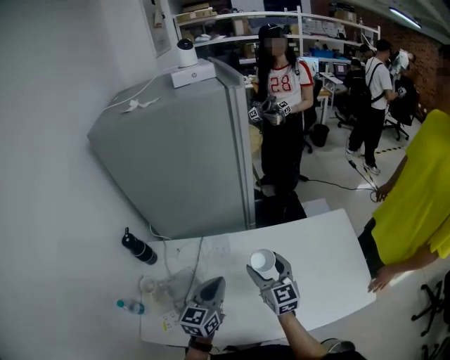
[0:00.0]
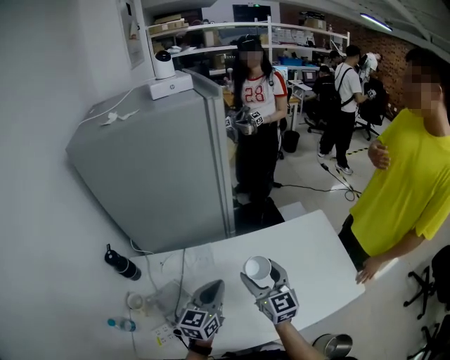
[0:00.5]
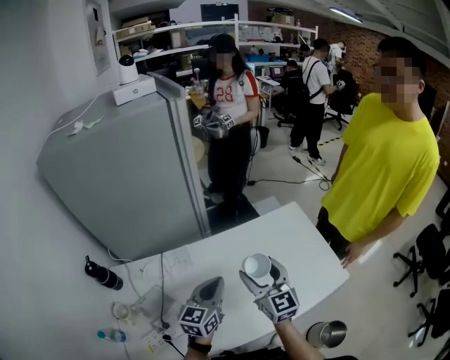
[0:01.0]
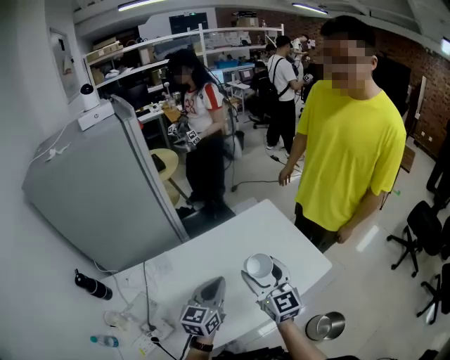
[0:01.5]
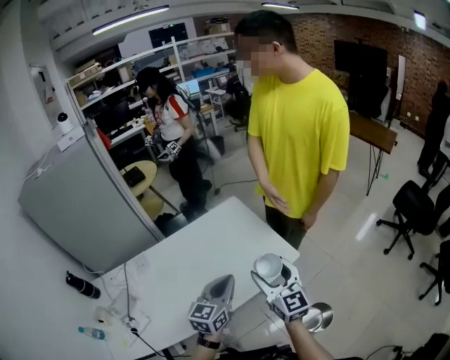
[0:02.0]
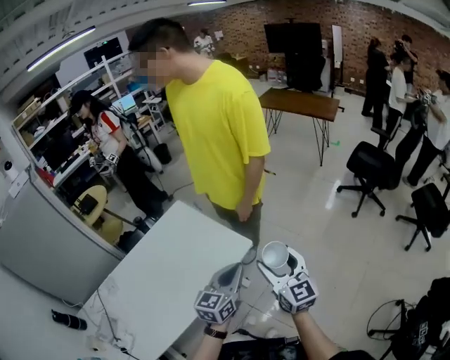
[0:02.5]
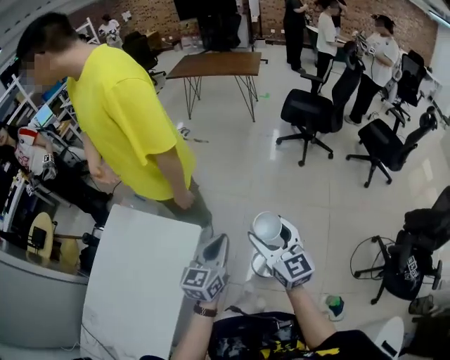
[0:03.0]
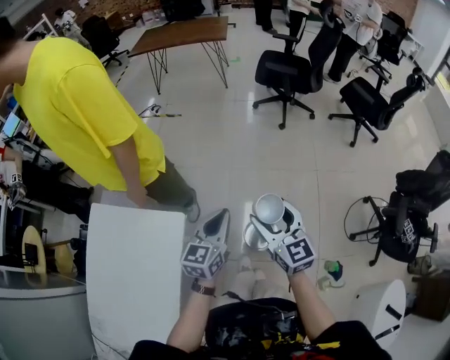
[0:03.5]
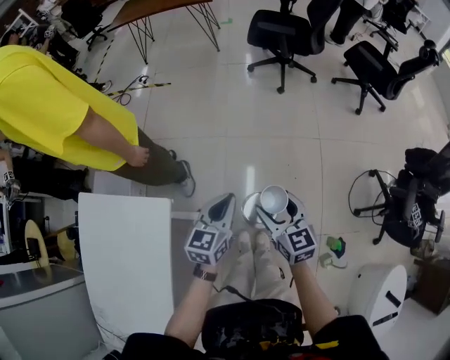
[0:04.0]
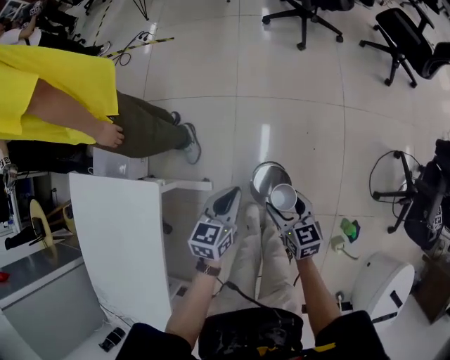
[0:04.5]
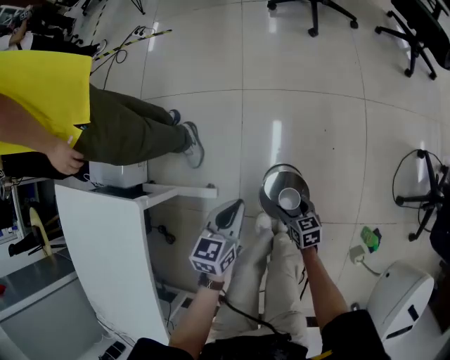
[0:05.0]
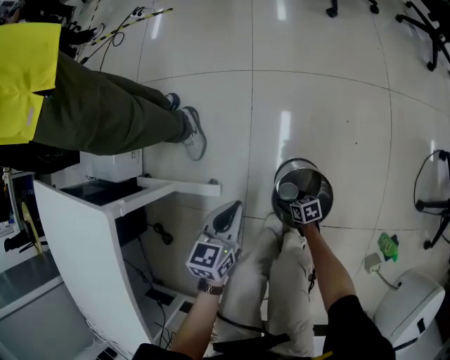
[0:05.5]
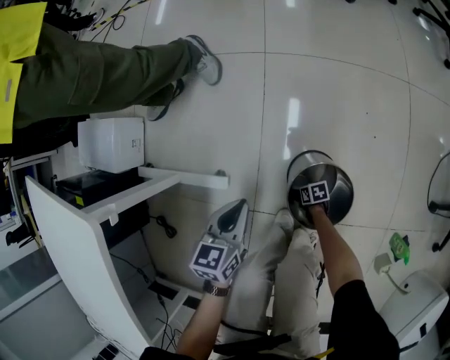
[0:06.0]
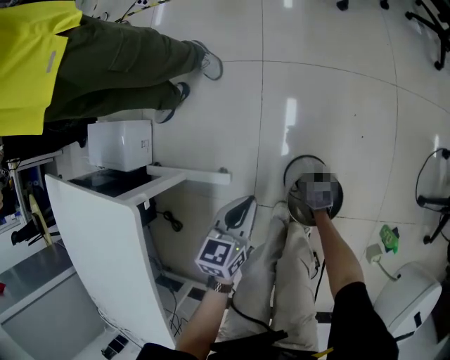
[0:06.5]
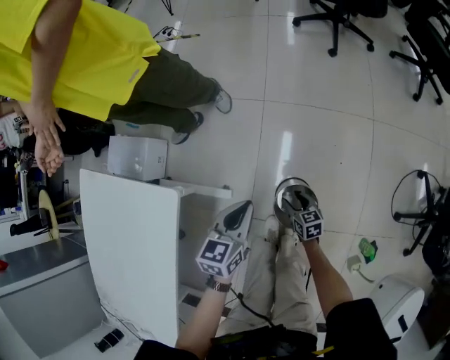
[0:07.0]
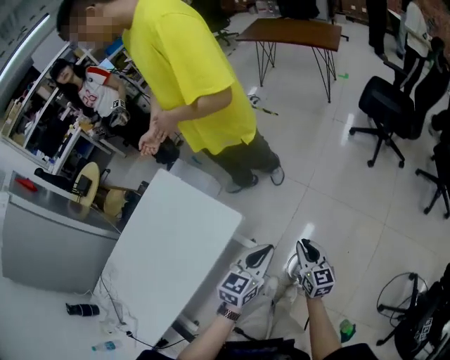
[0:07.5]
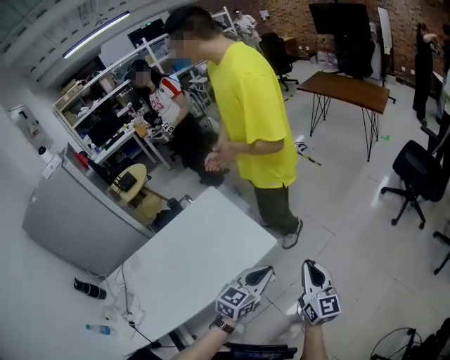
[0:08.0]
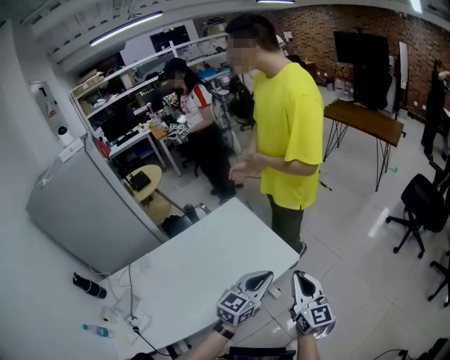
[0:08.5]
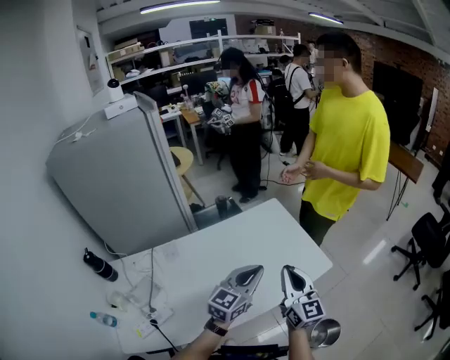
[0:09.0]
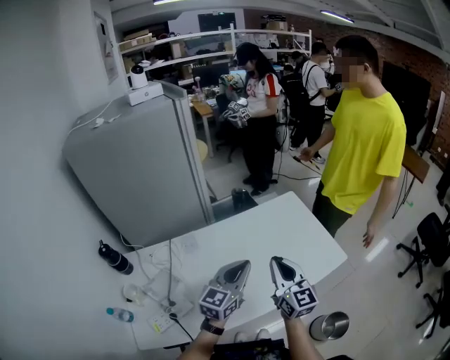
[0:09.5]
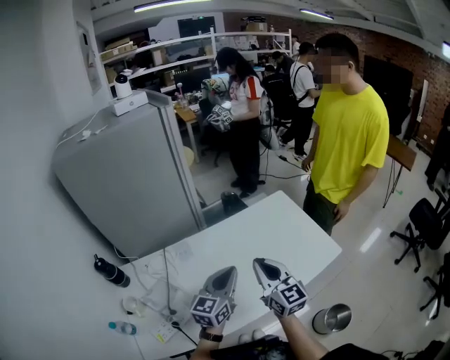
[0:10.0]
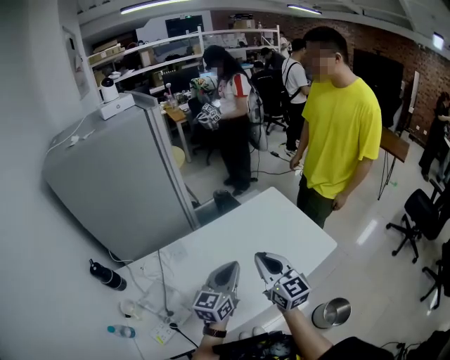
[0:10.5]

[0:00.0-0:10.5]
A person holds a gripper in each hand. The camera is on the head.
0:00.0 to 0:02.0: Both grippers are carried about 40 cm. The right gripper changes its angle by some 30 degrees, while the left gripper rotates some 30 degrees.
0:02.0 to 0:04.0: Both grippers are carried roughly 50 cm. The left gripper rotates about 60 degrees, while the right gripper turns by some 60 degrees.
0:04.0 to 0:06.5: The left gripper moves downward, roughly 40 cm, while the right gripper heads downward, covering about 70 cm, and points its fingers roughly 40 degrees further downward.
0:06.5 to 0:08.5: The left gripper moves upward, some 50 cm, and swivels approximately 40 degrees. Meanwhile the right gripper is displaced upward by approximately 90 cm, points its fingers about 70 degrees further upward, and closes up.
0:08.5 to 0:10.5: Both grippers are carried about 40 cm. The left gripper changes its angle by some 30 degrees. The right gripper swivels some 20 degrees.

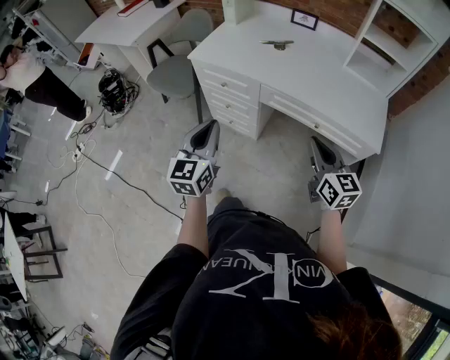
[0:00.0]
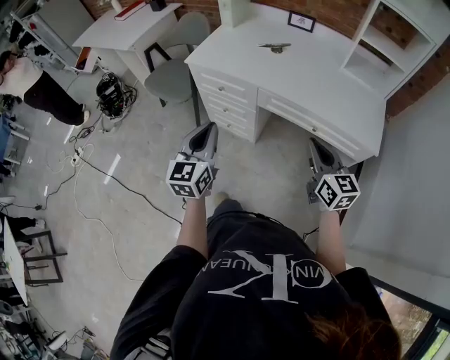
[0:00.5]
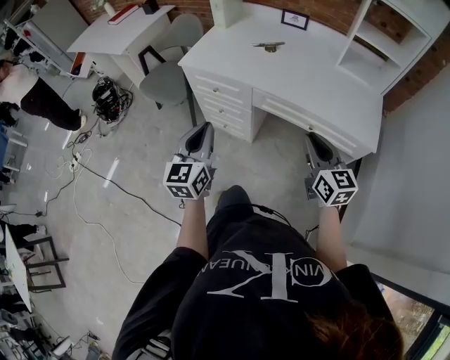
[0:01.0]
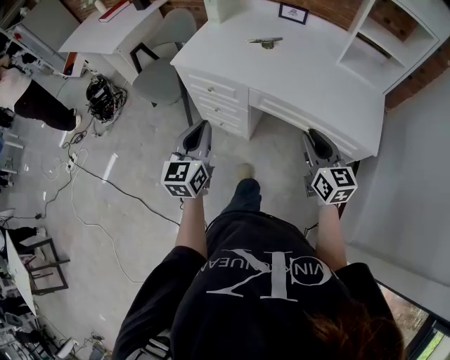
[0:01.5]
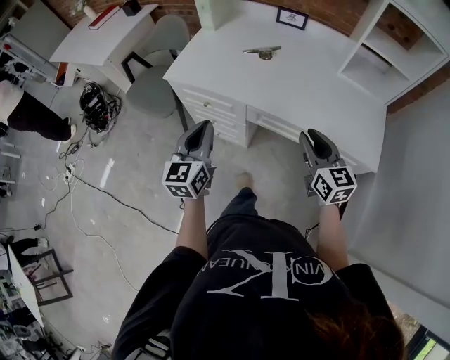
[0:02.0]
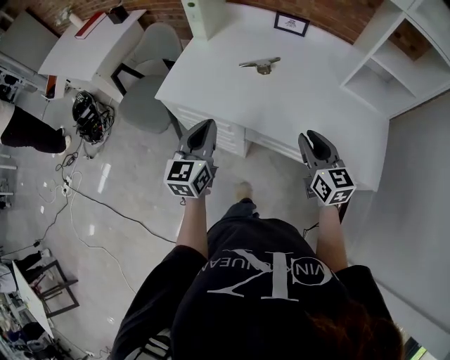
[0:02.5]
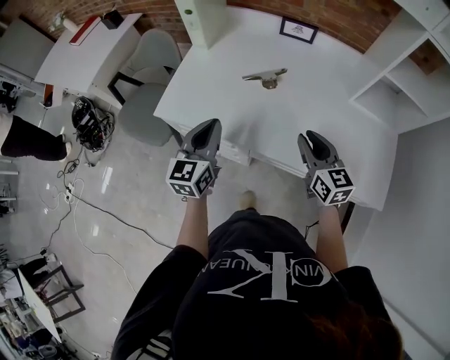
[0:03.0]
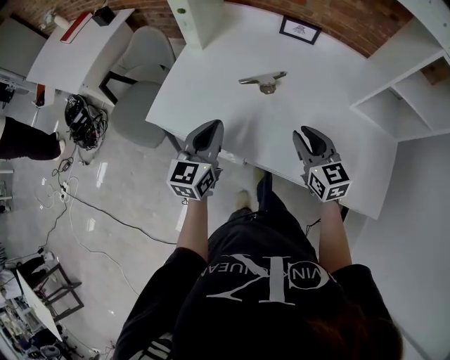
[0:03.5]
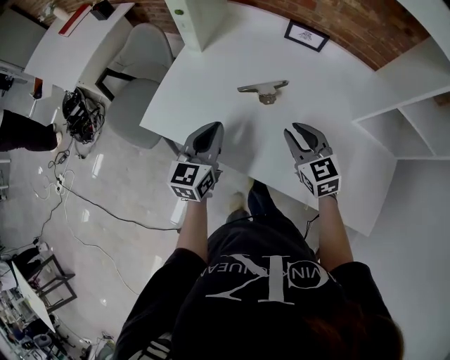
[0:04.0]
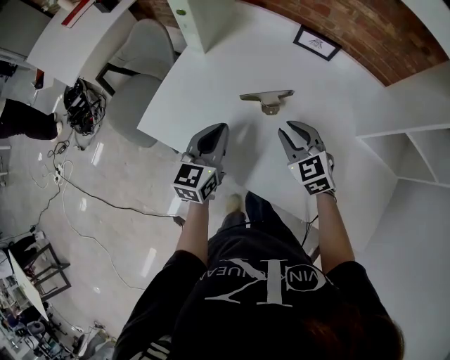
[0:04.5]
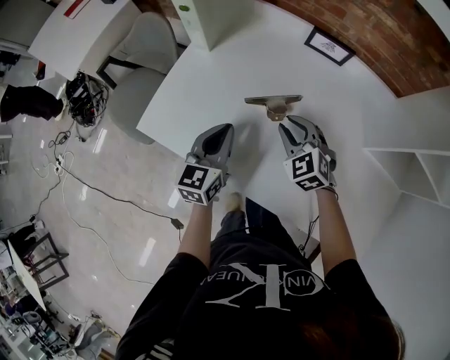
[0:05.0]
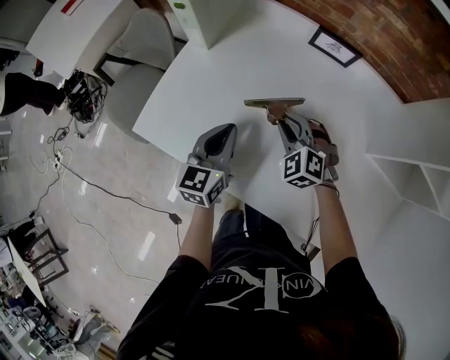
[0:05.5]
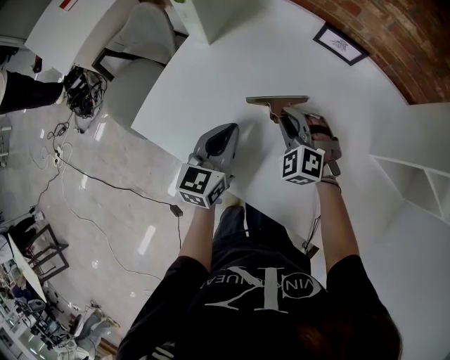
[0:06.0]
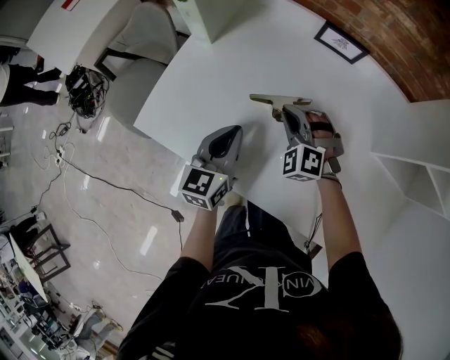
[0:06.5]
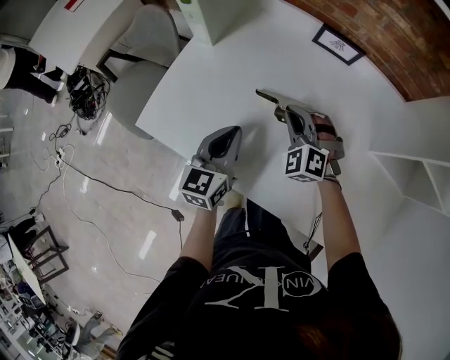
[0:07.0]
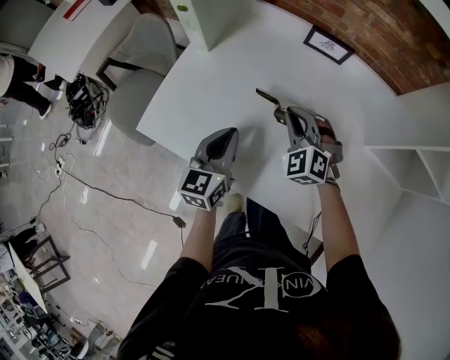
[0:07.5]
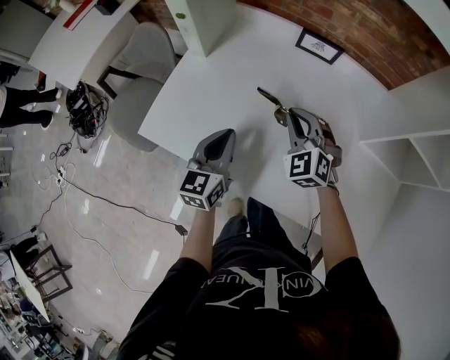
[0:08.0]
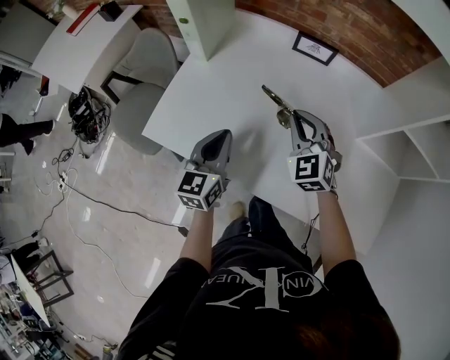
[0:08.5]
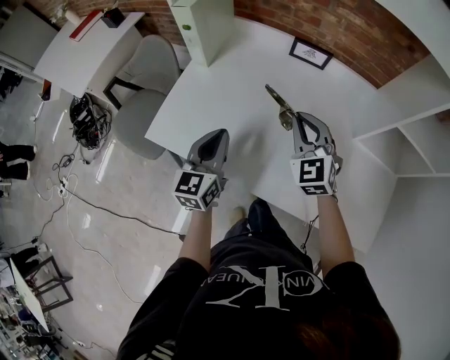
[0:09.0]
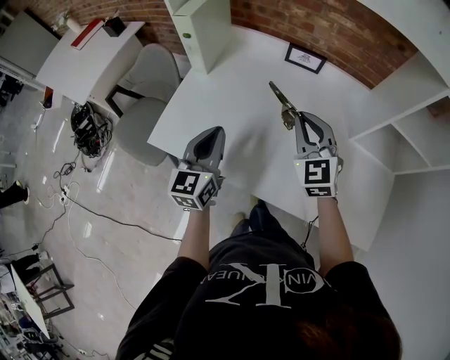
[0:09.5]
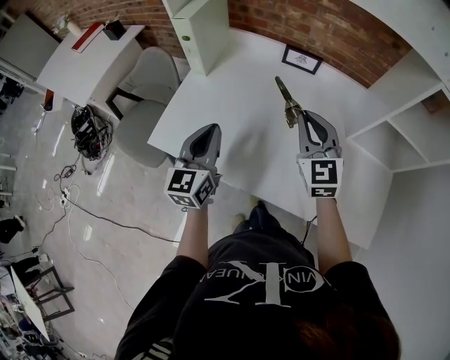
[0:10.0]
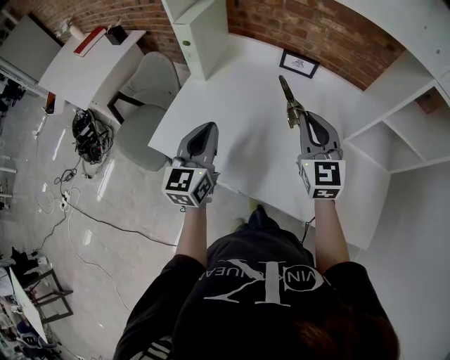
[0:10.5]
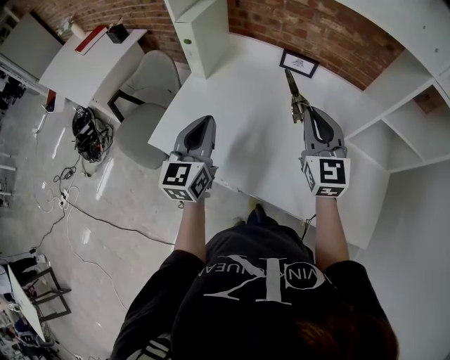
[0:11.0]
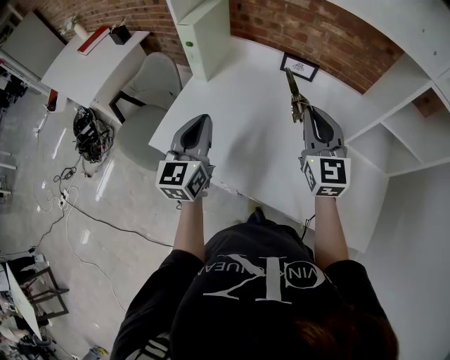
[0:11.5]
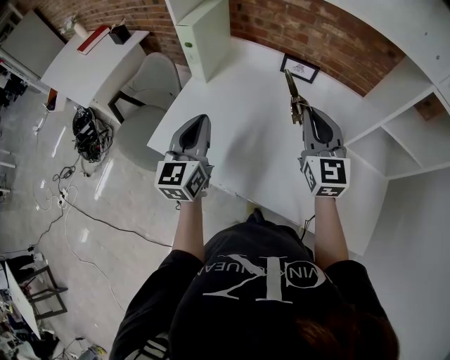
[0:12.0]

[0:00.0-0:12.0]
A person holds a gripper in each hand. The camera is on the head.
0:00.0 to 0:02.0: The two grippers go approximately 15 cm forward.
0:02.0 to 0:04.0: Both grippers move forward, about 30 cm. The right gripper rotates approximately 20 degrees.
0:04.0 to 0:06.0: The right gripper goes some 15 cm forward and downward, and twists roughly 50 degrees counterclockwise, seen from behind; the left gripper travels forward by roughly 5 cm.
0:06.0 to 0:08.0: The left gripper shifts by roughly 5 cm, while the right gripper travels upward by some 10 cm, and rotates some 20 degrees.
0:08.0 to 0:10.0: The left gripper shifts approximately 10 cm upward. The right gripper heads upward and backward, covering roughly 15 cm, and swivels about 30 degrees.
0:10.0 to 0:12.0: The grippers stay close to where they were, moving slightly.

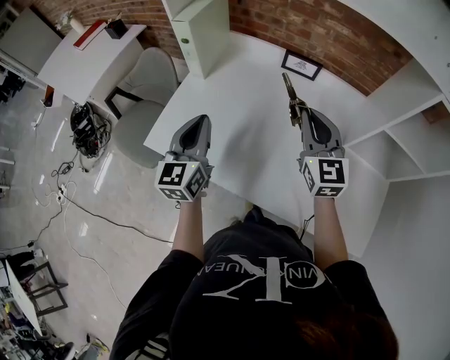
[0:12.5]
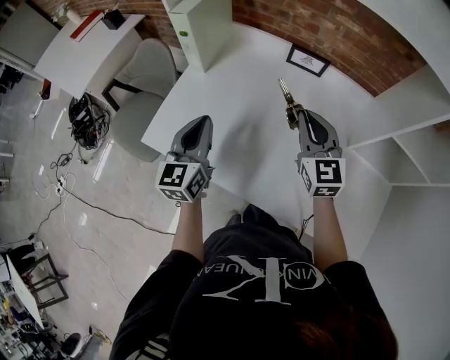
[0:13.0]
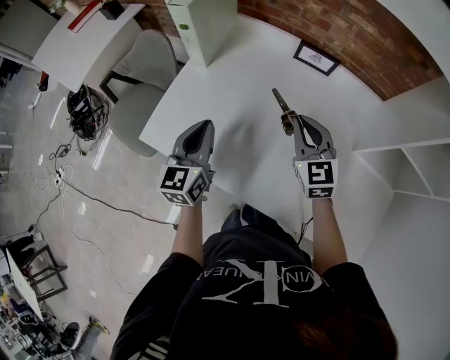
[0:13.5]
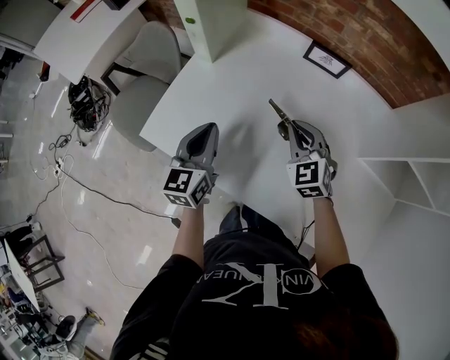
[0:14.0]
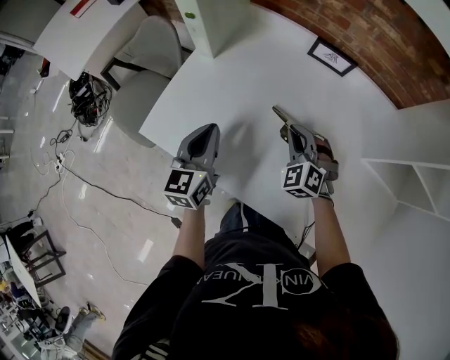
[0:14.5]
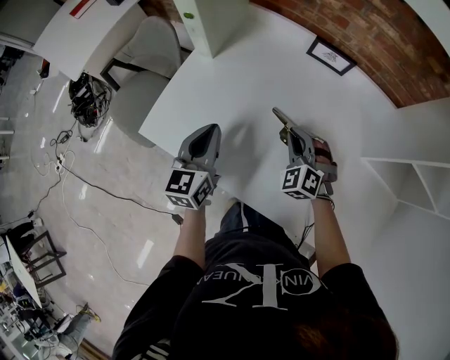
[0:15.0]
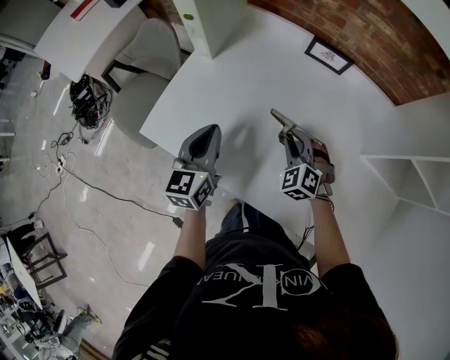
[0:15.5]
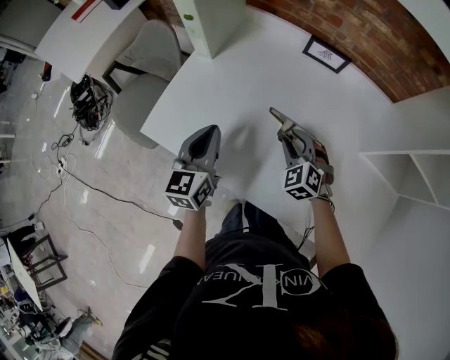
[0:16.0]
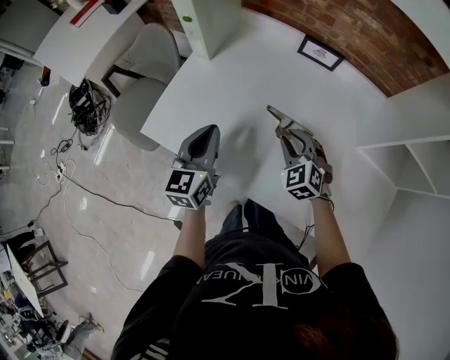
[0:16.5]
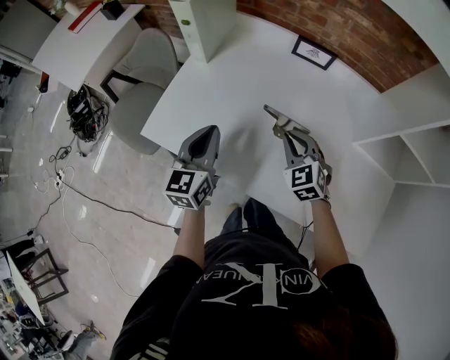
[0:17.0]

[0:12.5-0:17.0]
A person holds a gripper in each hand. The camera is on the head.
0:12.5 to 0:14.5: The right gripper goes approximately 20 cm downward, and angles its fingers downward, by approximately 30 degrees, while the left gripper heads downward, covering roughly 10 cm.
0:14.5 to 0:17.0: The right gripper moves backward, approximately 5 cm, rotates about 20 degrees, and opens and closes again.
